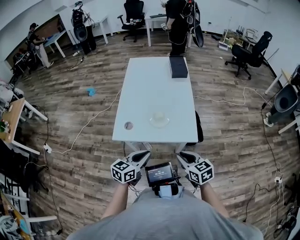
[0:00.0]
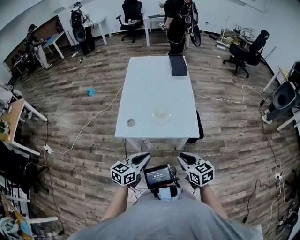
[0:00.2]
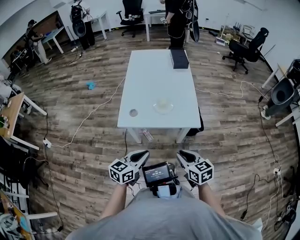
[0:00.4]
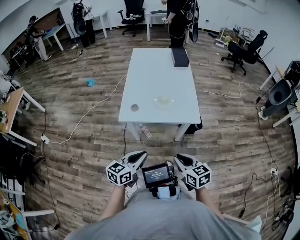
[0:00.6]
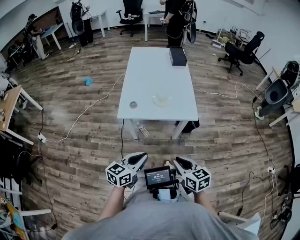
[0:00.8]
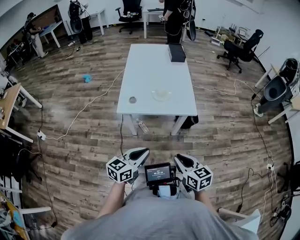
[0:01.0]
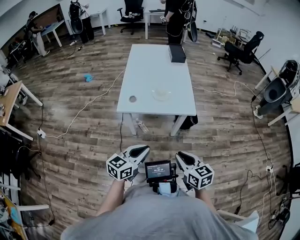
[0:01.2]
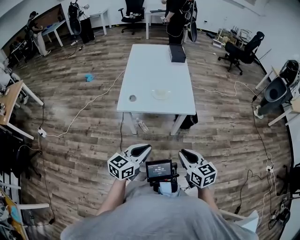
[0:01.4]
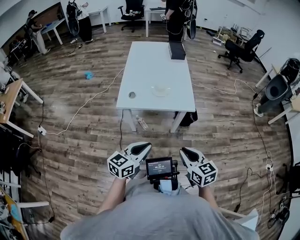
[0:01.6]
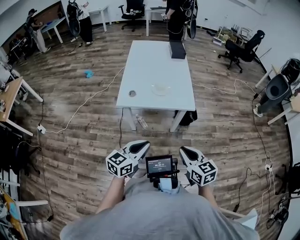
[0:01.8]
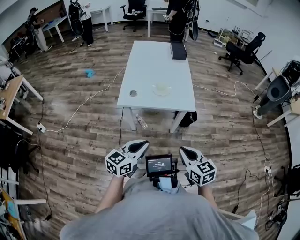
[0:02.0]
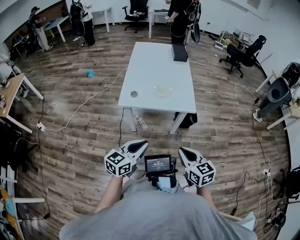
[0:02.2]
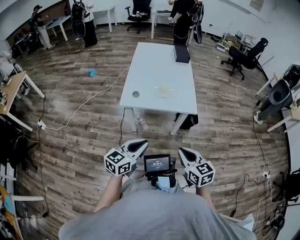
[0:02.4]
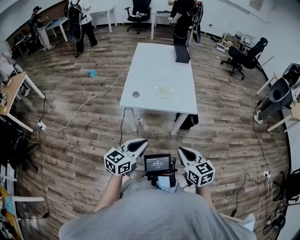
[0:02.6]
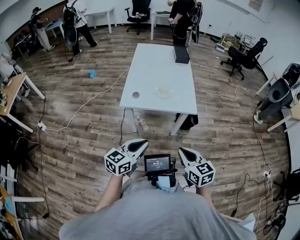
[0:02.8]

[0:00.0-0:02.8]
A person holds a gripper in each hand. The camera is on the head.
0:00.0 to 0:01.4: The grippers both shift backward by roughly 20 cm.
0:01.4 to 0:02.8: There are only small adjustments of the grippers.

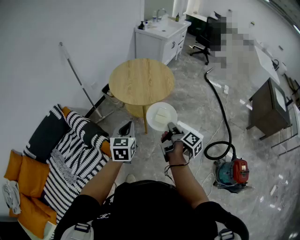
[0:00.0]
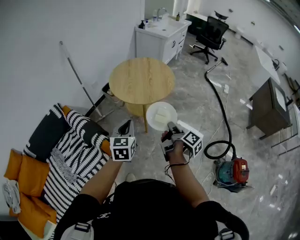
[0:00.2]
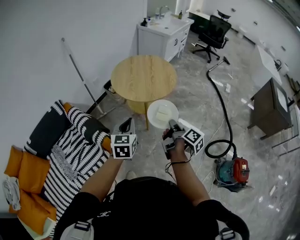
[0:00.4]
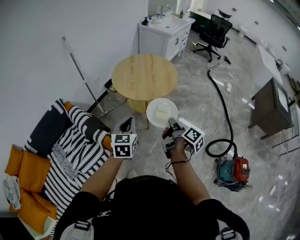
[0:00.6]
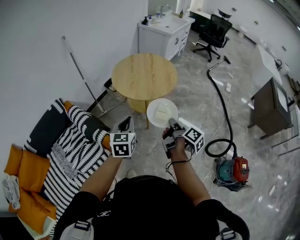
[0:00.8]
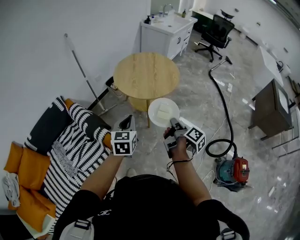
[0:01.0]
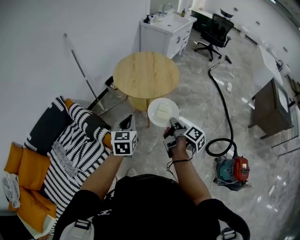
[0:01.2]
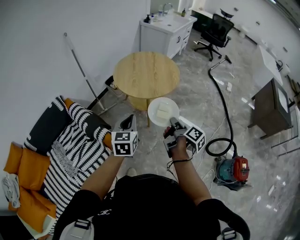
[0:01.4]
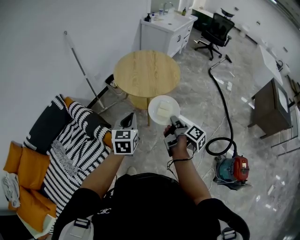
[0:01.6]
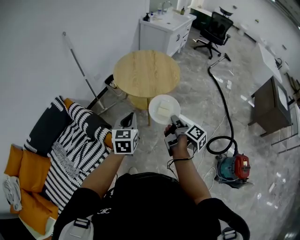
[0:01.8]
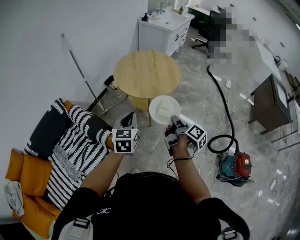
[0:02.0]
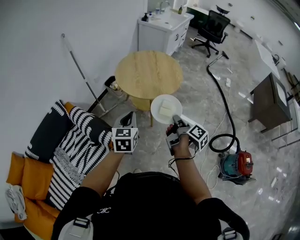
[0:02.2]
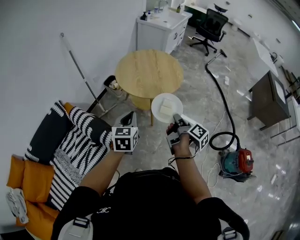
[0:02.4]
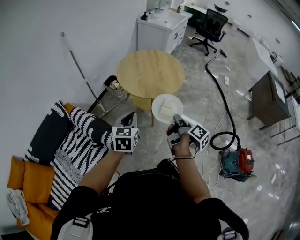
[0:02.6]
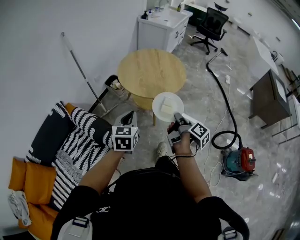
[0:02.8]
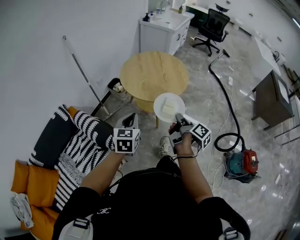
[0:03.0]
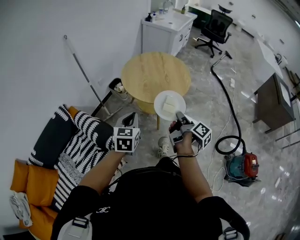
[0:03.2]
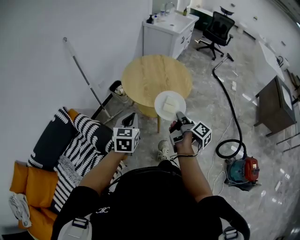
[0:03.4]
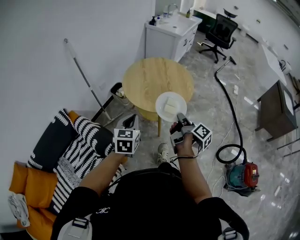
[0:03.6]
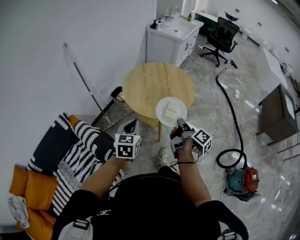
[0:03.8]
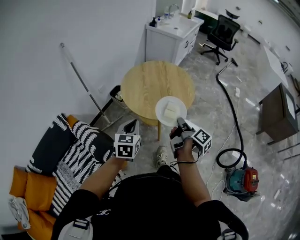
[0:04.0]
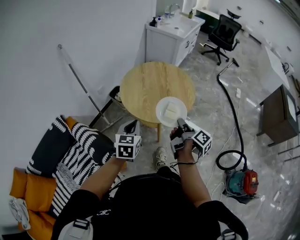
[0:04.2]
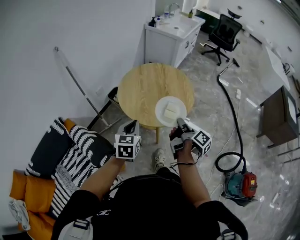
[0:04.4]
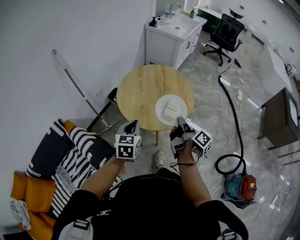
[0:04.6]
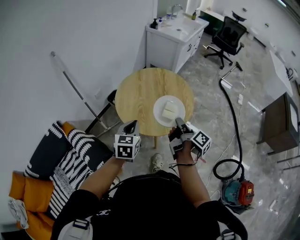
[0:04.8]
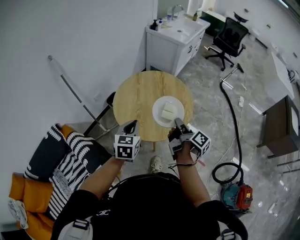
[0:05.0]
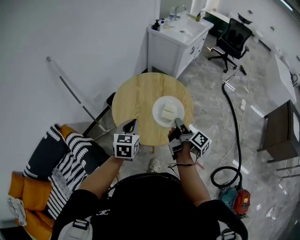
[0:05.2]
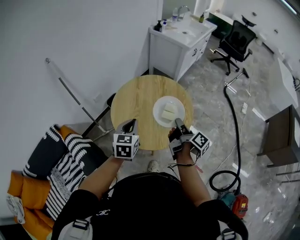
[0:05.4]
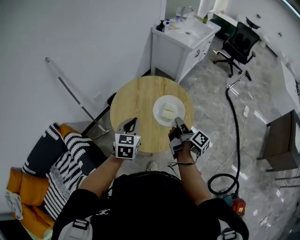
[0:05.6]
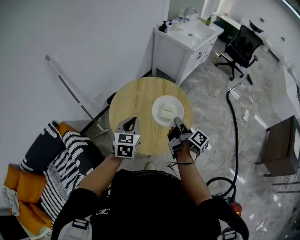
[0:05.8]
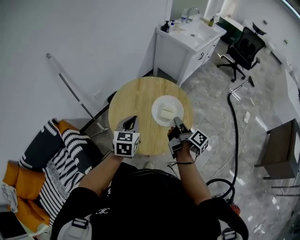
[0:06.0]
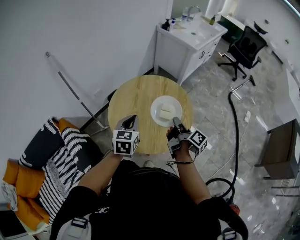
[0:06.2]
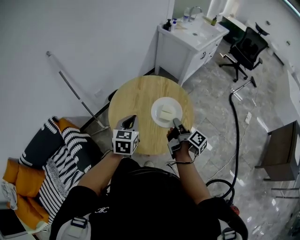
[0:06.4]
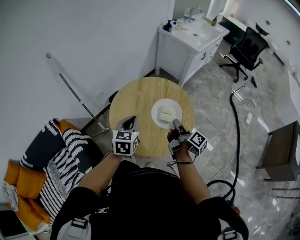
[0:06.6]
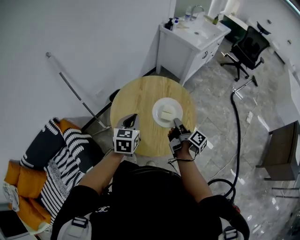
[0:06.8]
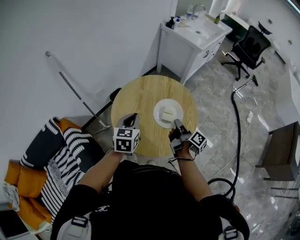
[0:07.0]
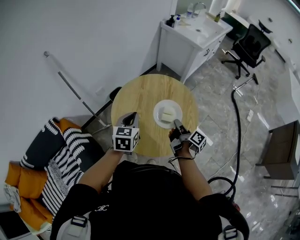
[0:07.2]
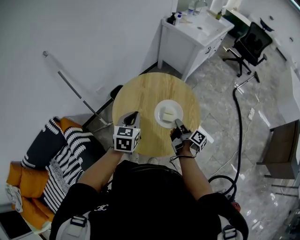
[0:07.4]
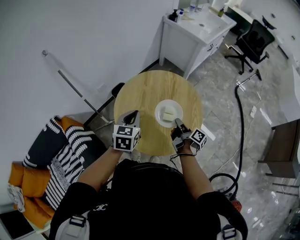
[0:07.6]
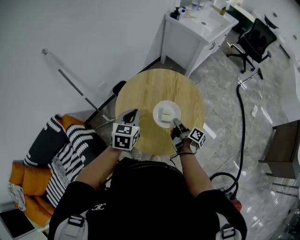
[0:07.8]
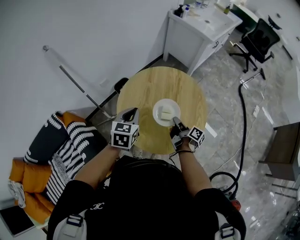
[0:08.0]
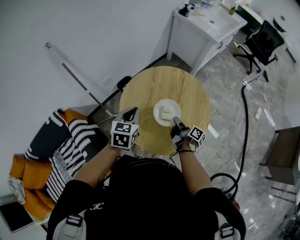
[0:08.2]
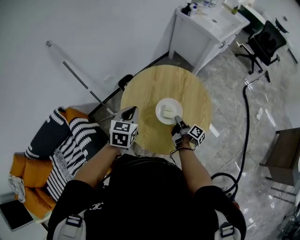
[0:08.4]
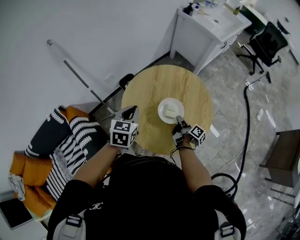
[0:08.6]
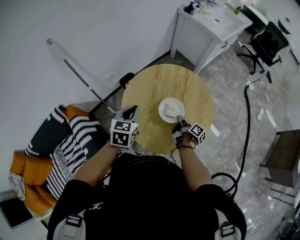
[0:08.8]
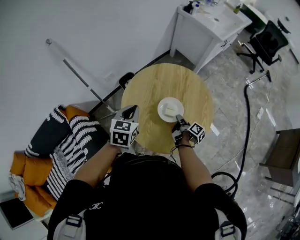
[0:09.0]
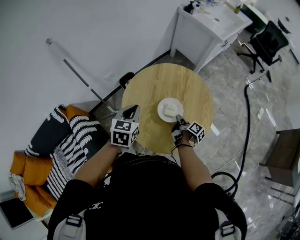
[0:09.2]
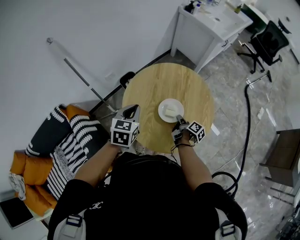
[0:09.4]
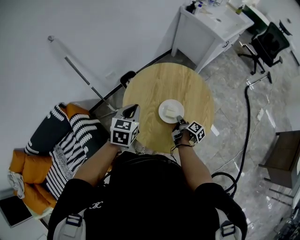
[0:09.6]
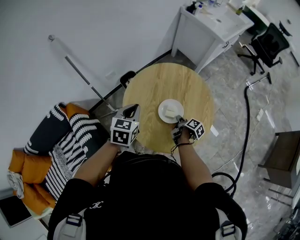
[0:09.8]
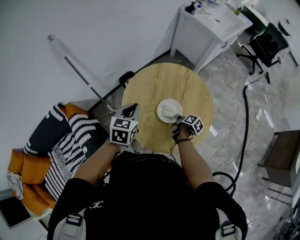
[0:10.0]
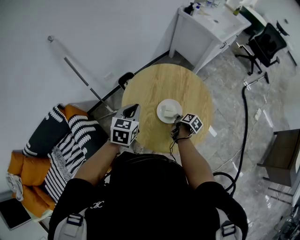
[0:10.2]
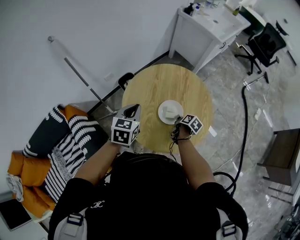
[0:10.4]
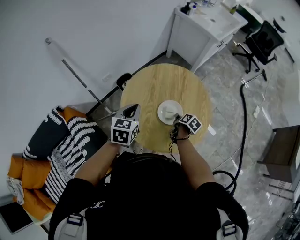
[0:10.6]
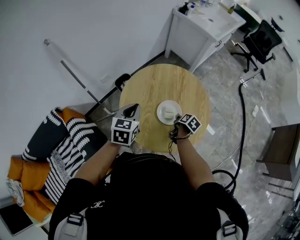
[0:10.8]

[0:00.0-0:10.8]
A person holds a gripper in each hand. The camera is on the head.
0:01.6 to 0:03.0: The left gripper moves approximately 10 cm.
0:03.0 to 0:04.6: The left gripper shifts by some 20 cm.
0:04.6 to 0:06.2: The left gripper shifts by some 15 cm.
0:06.2 to 0:07.8: The left gripper ends up about 5 cm from where it was.

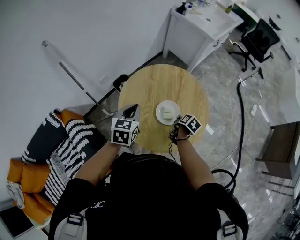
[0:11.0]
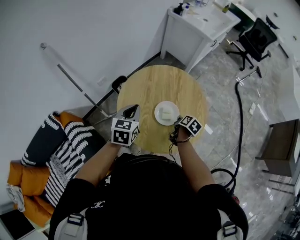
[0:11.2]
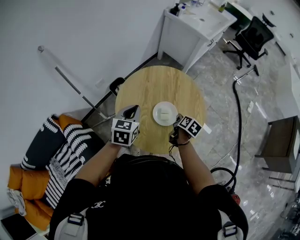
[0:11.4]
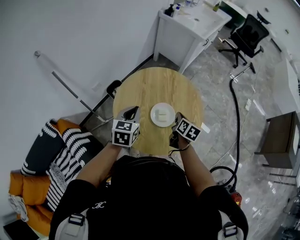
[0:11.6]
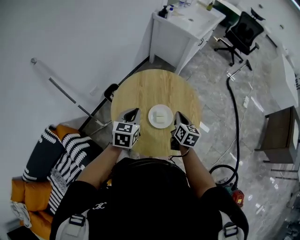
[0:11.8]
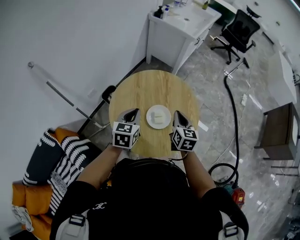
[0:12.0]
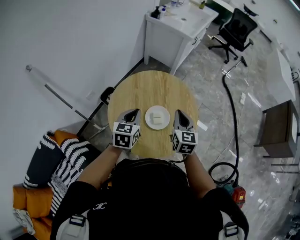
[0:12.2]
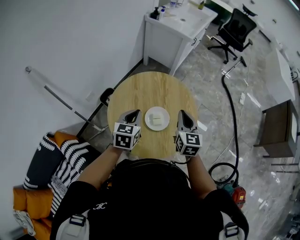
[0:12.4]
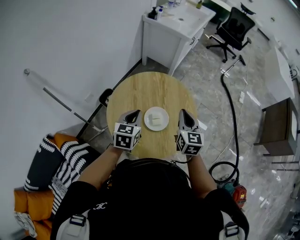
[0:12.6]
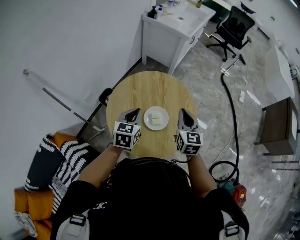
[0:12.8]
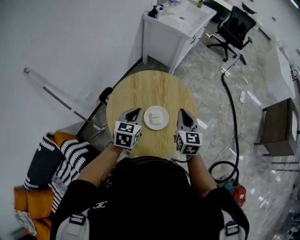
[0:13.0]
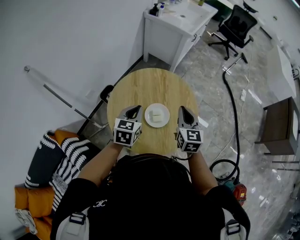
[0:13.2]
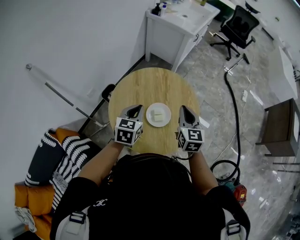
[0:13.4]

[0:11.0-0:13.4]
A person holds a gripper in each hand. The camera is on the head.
0:11.0 to 0:12.2: The left gripper moves about 5 cm.

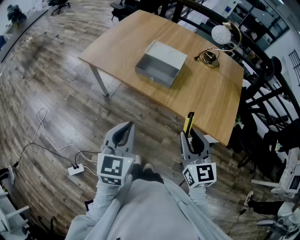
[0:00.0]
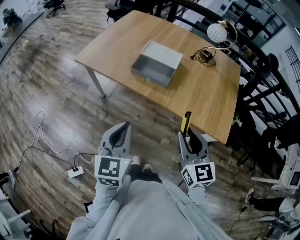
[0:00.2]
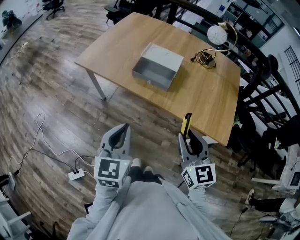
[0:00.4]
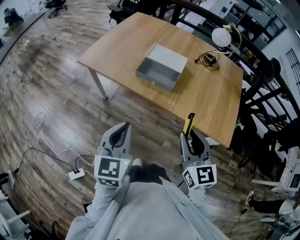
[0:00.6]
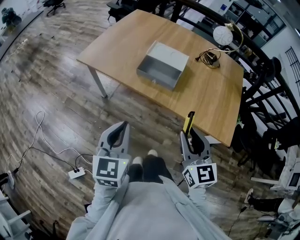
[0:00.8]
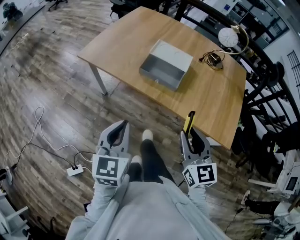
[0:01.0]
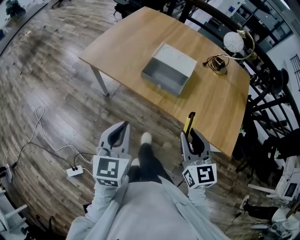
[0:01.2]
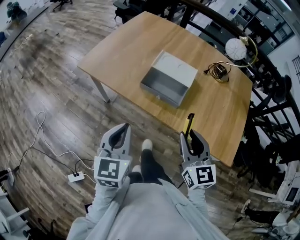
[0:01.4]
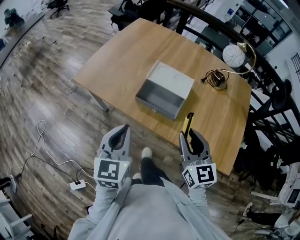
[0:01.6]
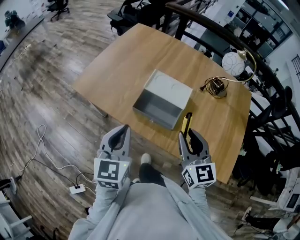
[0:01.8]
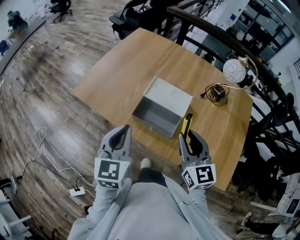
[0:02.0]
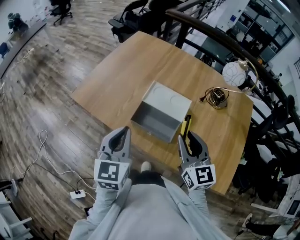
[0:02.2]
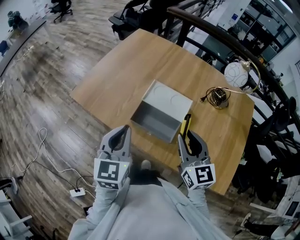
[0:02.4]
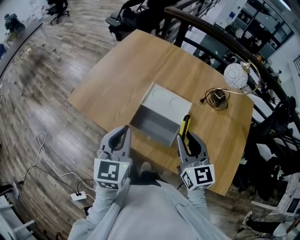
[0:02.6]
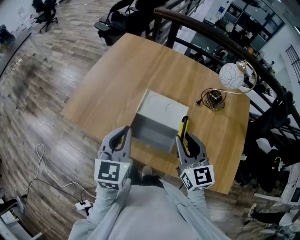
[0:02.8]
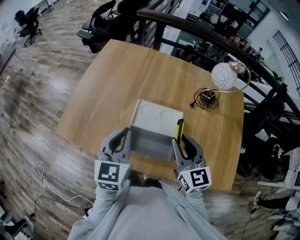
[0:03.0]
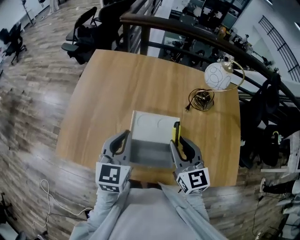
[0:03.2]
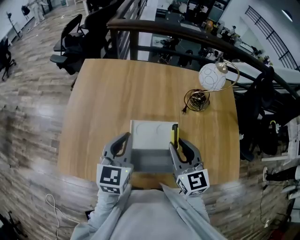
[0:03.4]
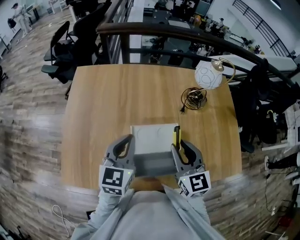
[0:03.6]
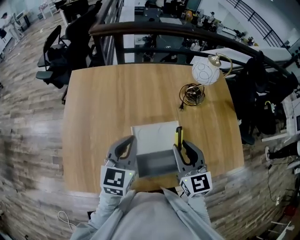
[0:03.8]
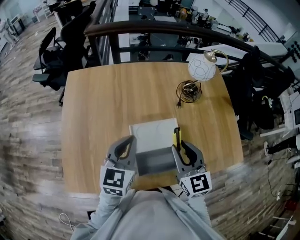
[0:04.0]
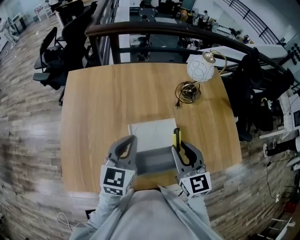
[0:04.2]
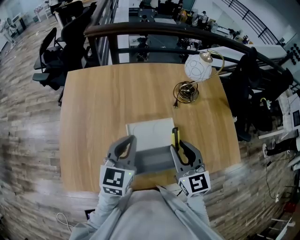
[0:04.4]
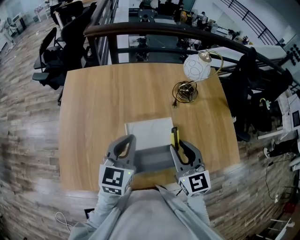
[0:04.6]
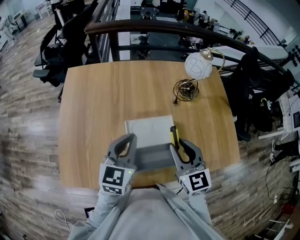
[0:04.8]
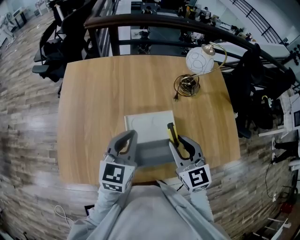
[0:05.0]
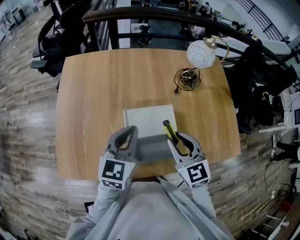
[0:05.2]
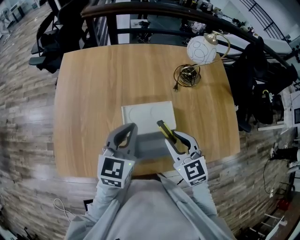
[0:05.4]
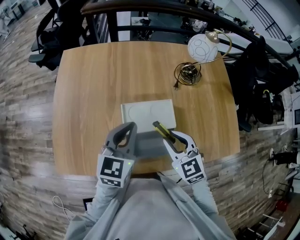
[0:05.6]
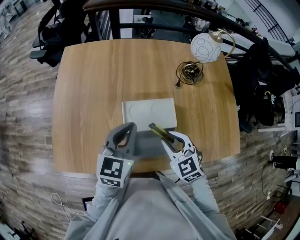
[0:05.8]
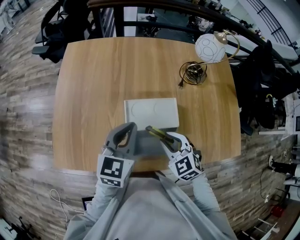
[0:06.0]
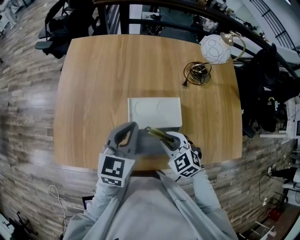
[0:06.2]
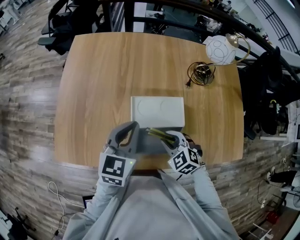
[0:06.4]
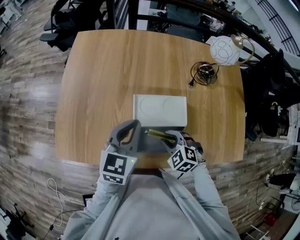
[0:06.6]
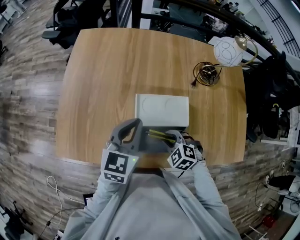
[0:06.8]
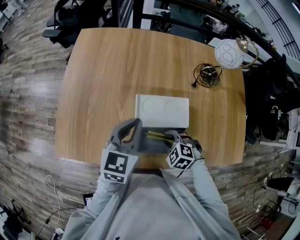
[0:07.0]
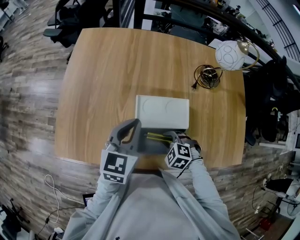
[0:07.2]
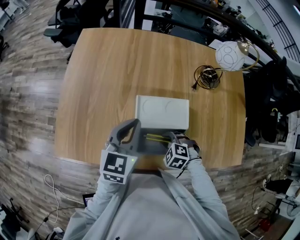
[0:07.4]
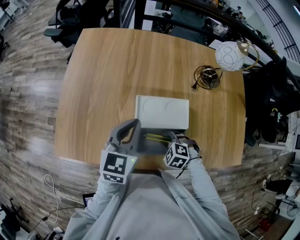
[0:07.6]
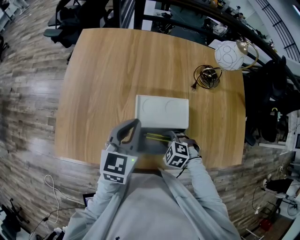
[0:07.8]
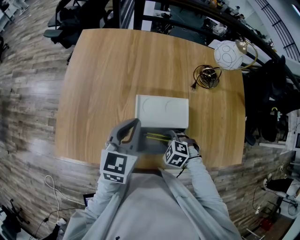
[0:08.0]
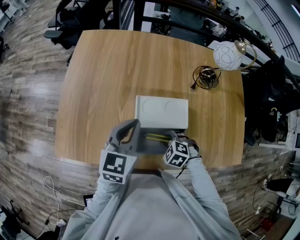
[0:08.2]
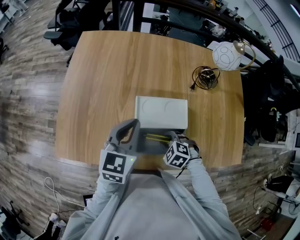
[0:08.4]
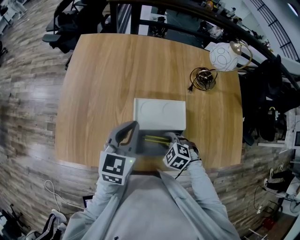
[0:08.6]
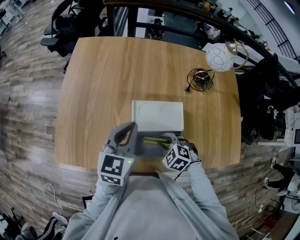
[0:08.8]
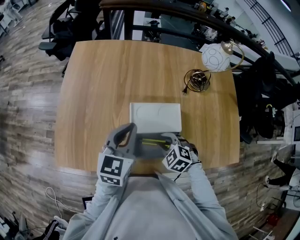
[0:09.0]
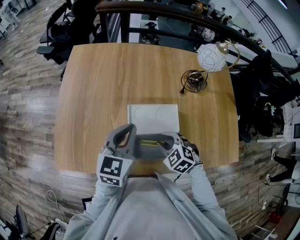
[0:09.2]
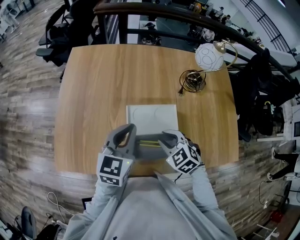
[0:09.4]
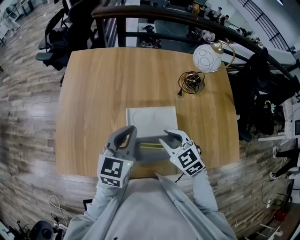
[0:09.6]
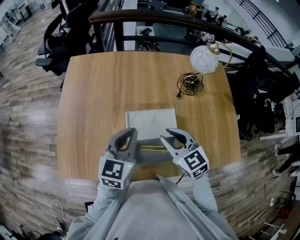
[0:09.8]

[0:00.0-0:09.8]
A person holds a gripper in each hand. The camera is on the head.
0:00.0 to 0:01.4: The right gripper travels forward by approximately 15 cm. The left gripper travels forward and to the left by roughly 15 cm.
0:01.4 to 0:02.8: Both grippers travel together forward, approximately 25 cm.
0:02.8 to 0:04.2: The left gripper moves some 15 cm, and turns by about 40 degrees. The right gripper moves roughly 5 cm, and changes its angle by about 30 degrees.
0:04.2 to 0:05.6: The right gripper goes about 10 cm downward, and swivels roughly 30 degrees.
0:05.6 to 0:07.0: The right gripper moves downward, roughly 15 cm, and tips its fingers downward by approximately 30 degrees.
0:07.0 to 0:08.4: The grippers stay close to where they were, moving slightly.
0:08.4 to 0:09.8: The right gripper goes approximately 20 cm upward, and tips its fingers upward by roughly 40 degrees.
